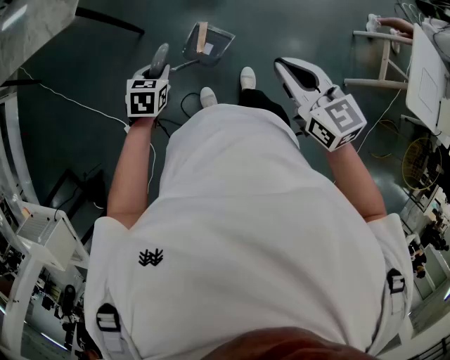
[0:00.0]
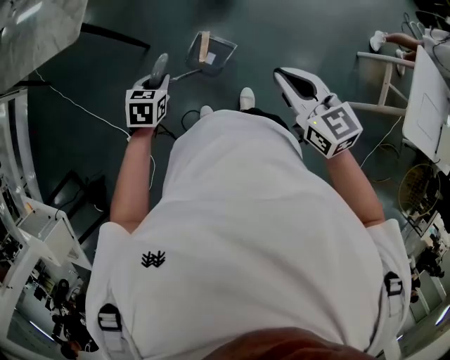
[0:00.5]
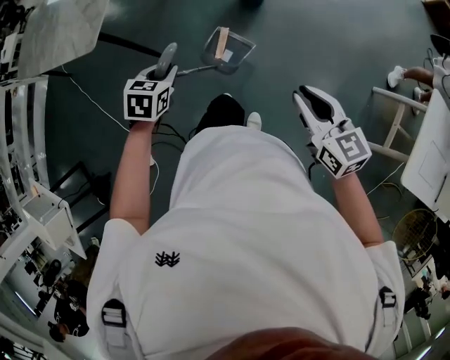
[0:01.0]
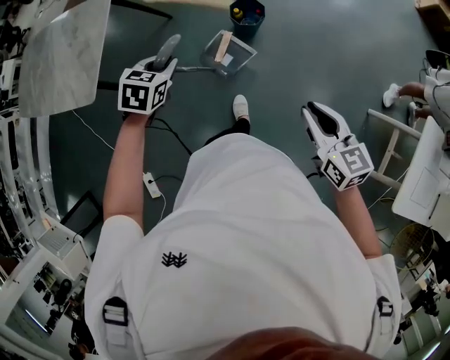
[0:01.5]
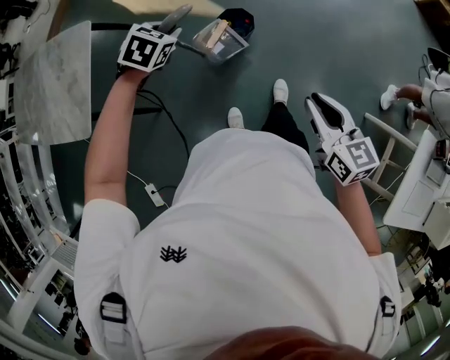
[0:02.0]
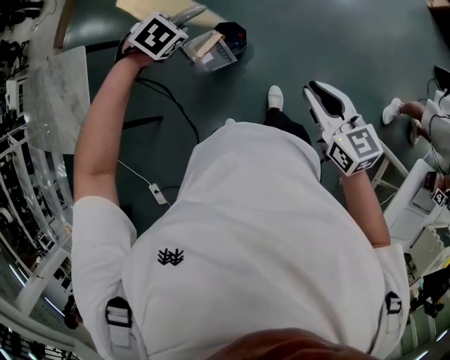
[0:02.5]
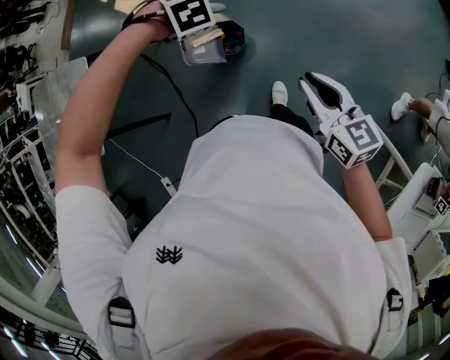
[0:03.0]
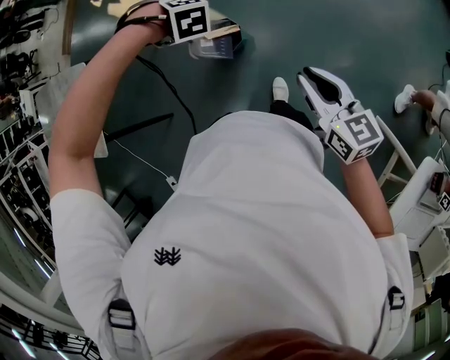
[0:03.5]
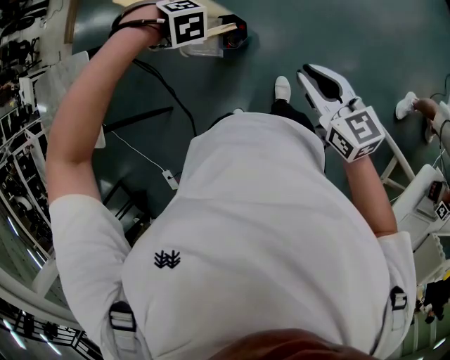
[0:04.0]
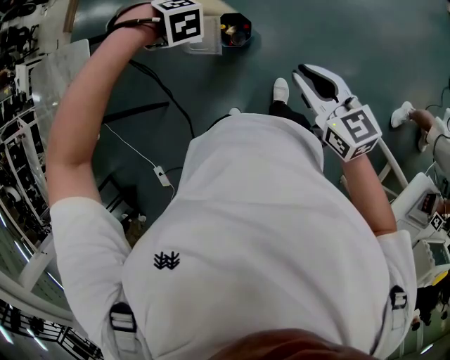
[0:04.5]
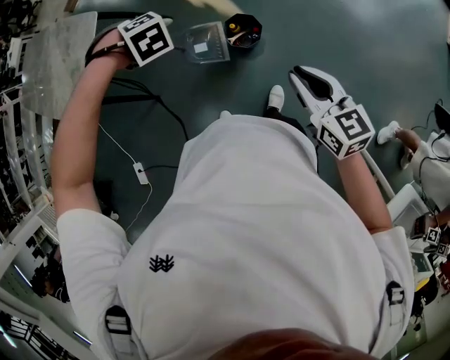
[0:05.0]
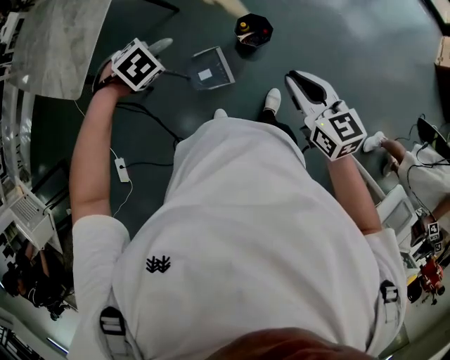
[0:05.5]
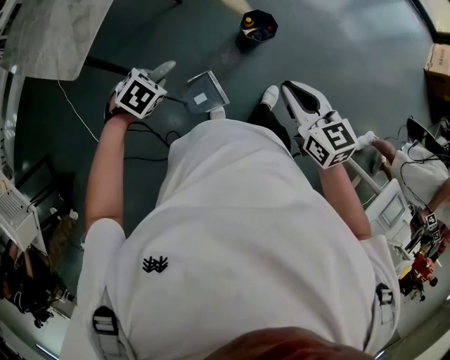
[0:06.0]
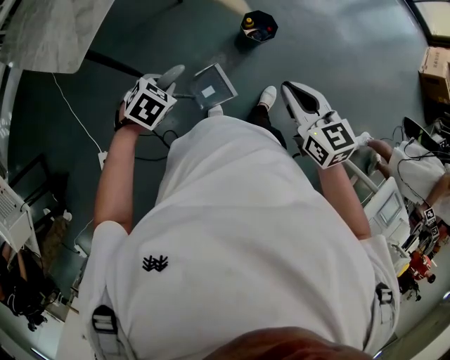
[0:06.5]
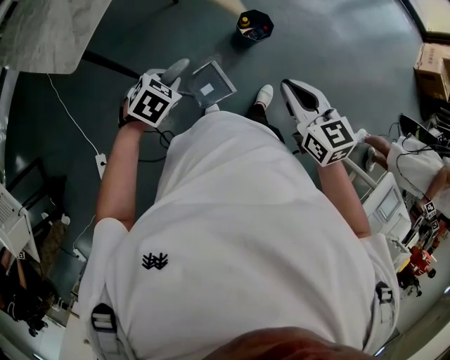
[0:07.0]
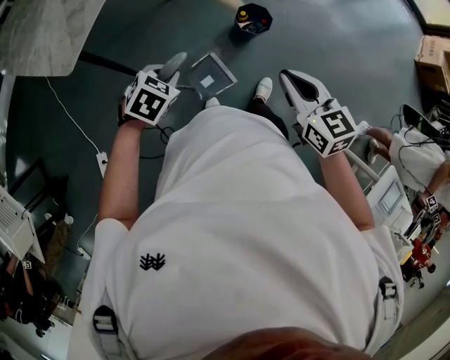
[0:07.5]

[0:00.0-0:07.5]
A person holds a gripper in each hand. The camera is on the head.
0:00.0 to 0:02.0: The right gripper changes place by approximately 50 cm.
0:02.0 to 0:04.0: The right gripper ends up roughly 25 cm from where it was.
0:04.0 to 0:05.5: The right gripper ends up about 25 cm from where it was.
0:05.5 to 0:07.5: The right gripper shifts by approximately 15 cm.

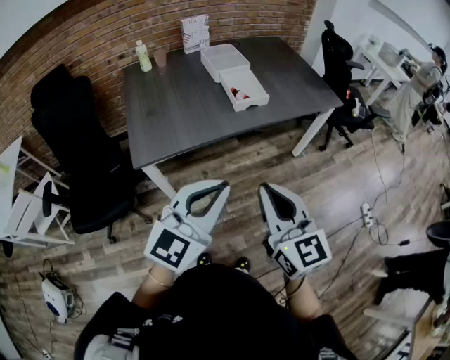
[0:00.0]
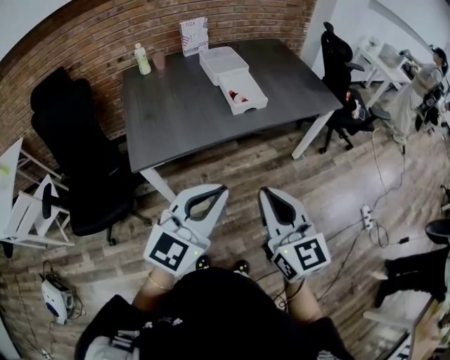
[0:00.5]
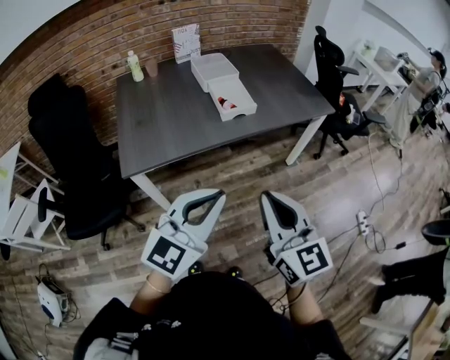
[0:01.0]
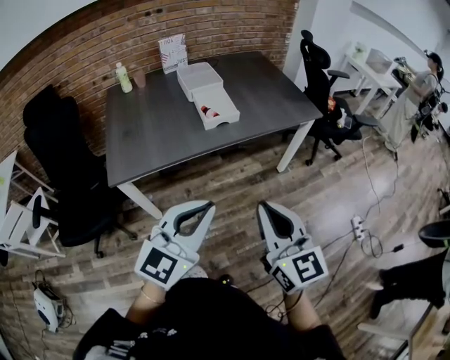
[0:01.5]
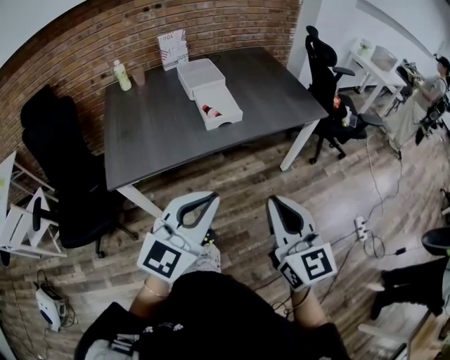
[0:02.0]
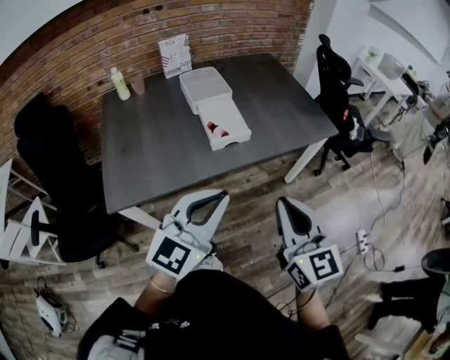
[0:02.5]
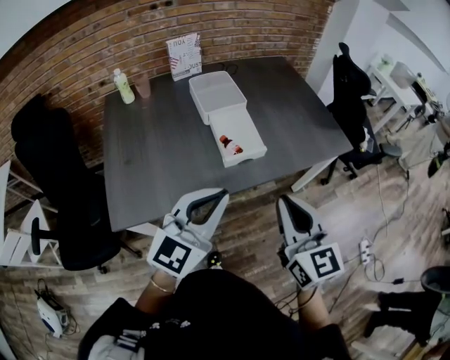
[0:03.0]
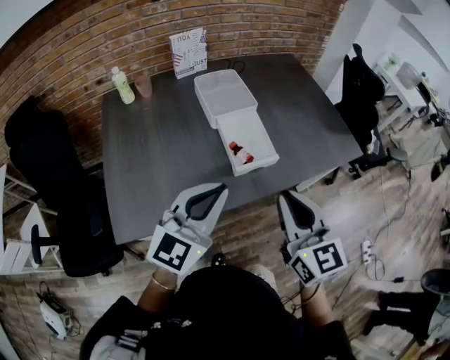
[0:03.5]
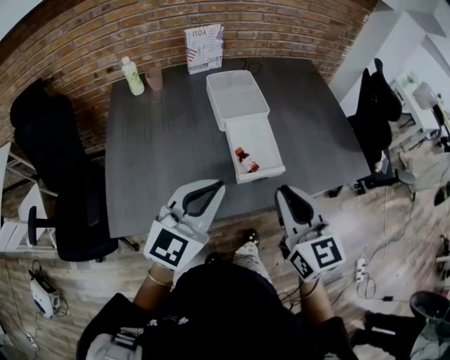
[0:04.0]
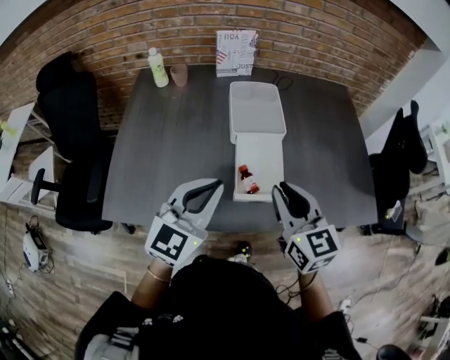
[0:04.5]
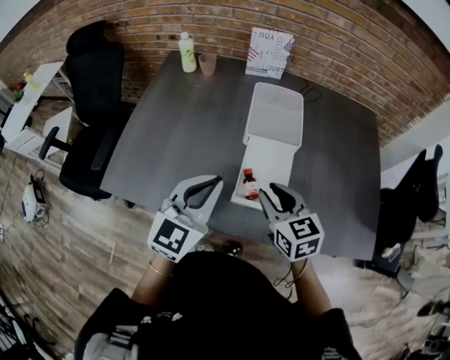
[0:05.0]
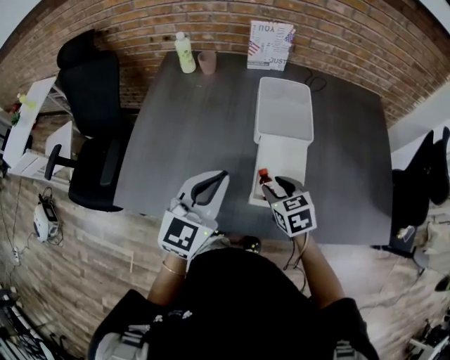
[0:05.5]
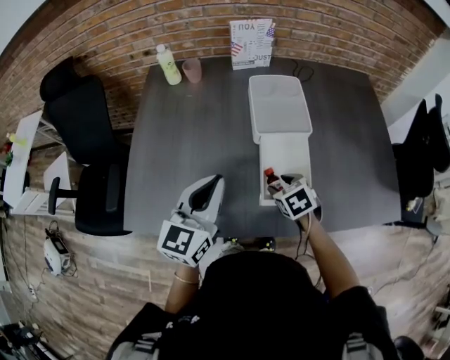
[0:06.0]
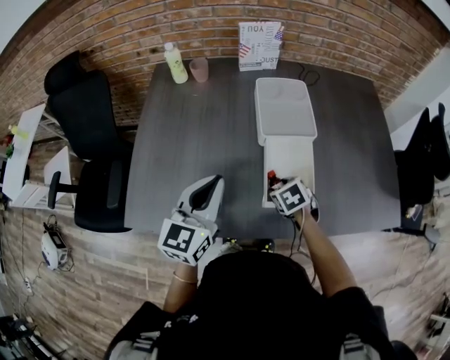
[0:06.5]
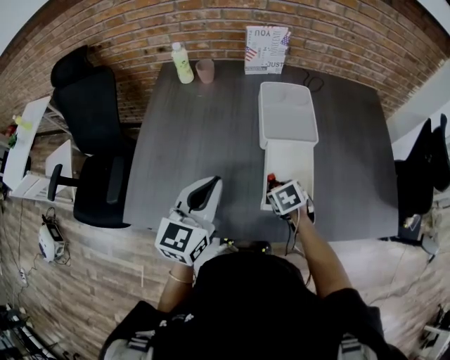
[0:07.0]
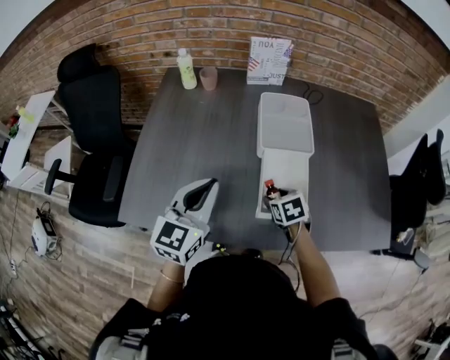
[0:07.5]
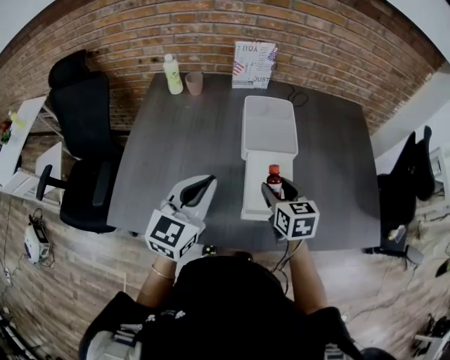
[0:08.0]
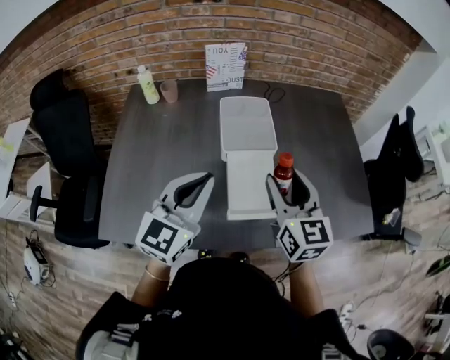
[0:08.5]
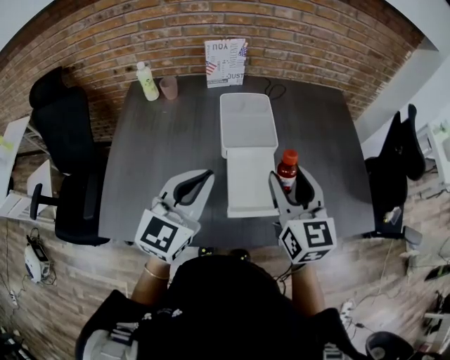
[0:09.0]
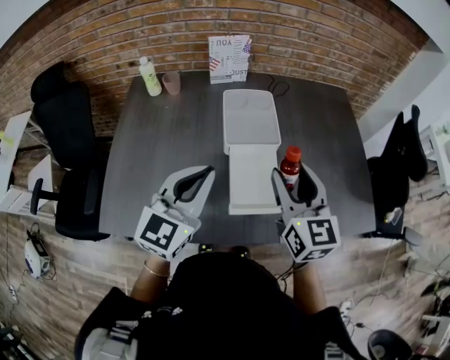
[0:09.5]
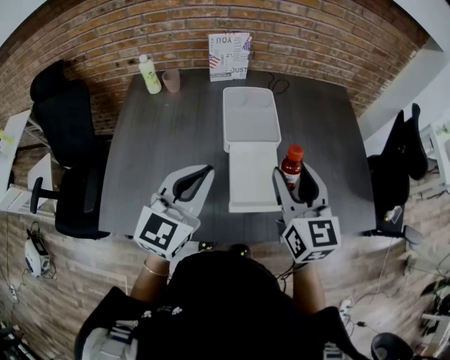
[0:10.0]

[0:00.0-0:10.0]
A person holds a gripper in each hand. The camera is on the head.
0:00.0 to 0:02.0: Both grippers move to the right and forward, approximately 15 cm.
0:02.0 to 0:04.0: The left gripper is displaced forward and to the left by some 35 cm, while the right gripper moves forward, some 35 cm.
0:04.0 to 0:06.0: The left gripper changes place by about 15 cm, and turns by approximately 30 degrees. The right gripper is displaced downward by approximately 25 cm, angles its fingers downward, by roughly 50 degrees, and opens its fingers.
0:06.0 to 0:08.0: The right gripper travels upward by some 10 cm, and swivels some 30 degrees.
0:08.0 to 0:10.0: The right gripper shifts some 15 cm upward, and turns by some 30 degrees. Meanwhile the left gripper changes place by about 5 cm.

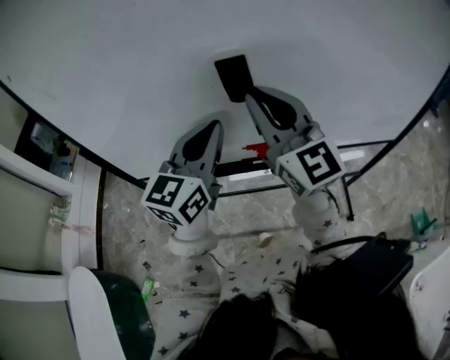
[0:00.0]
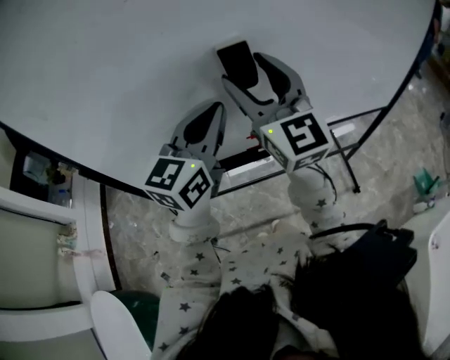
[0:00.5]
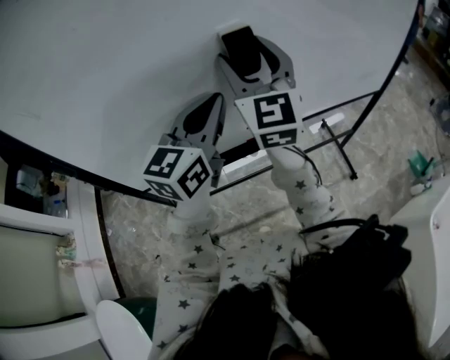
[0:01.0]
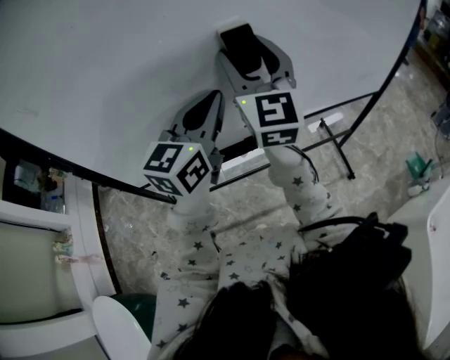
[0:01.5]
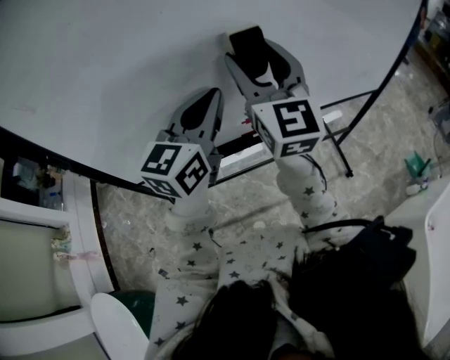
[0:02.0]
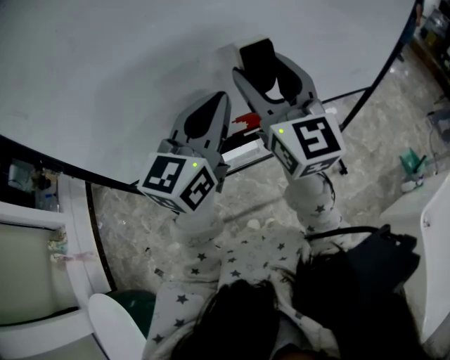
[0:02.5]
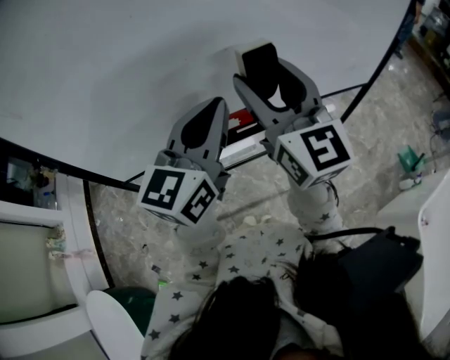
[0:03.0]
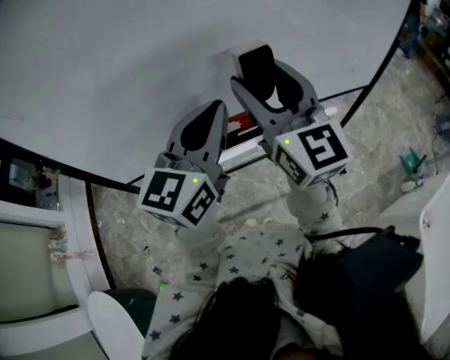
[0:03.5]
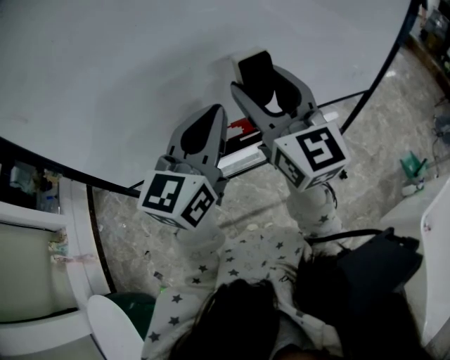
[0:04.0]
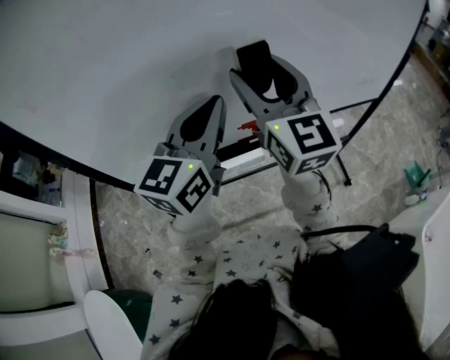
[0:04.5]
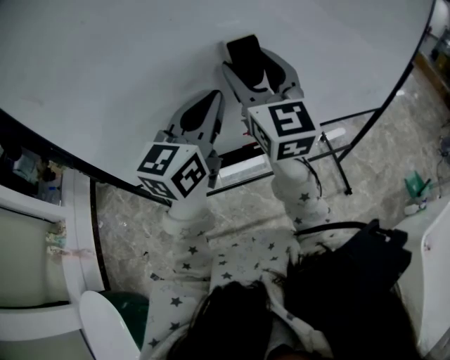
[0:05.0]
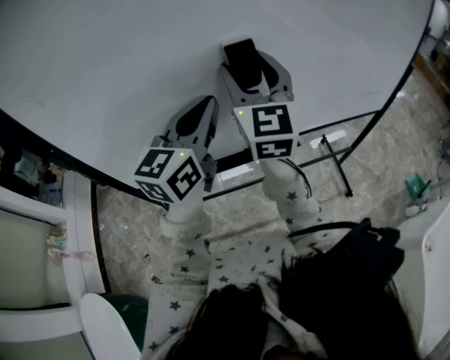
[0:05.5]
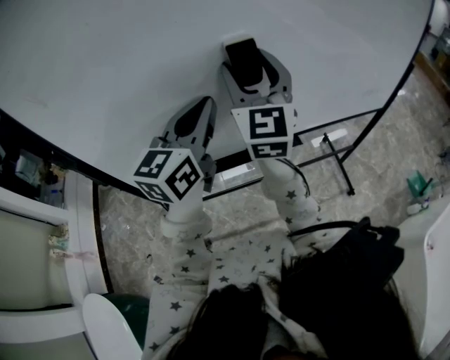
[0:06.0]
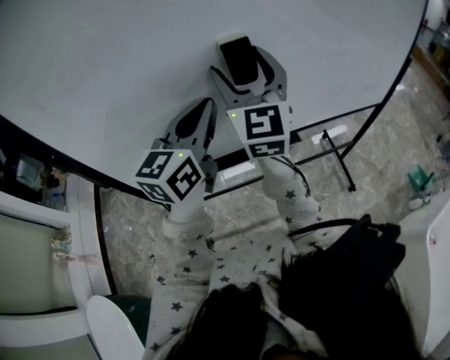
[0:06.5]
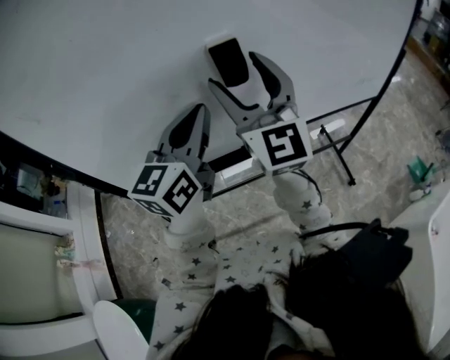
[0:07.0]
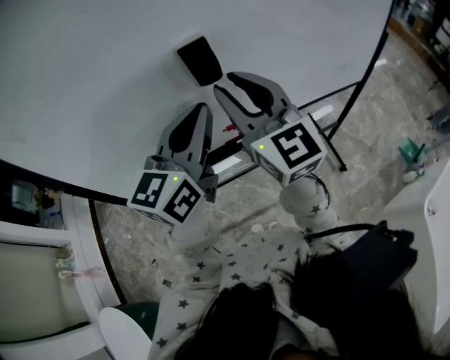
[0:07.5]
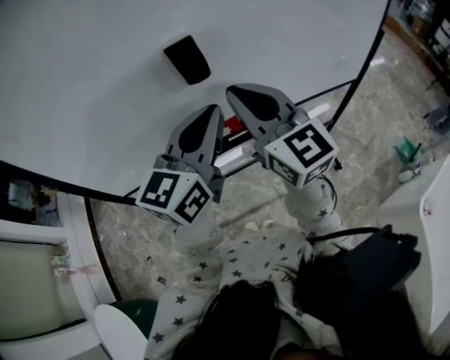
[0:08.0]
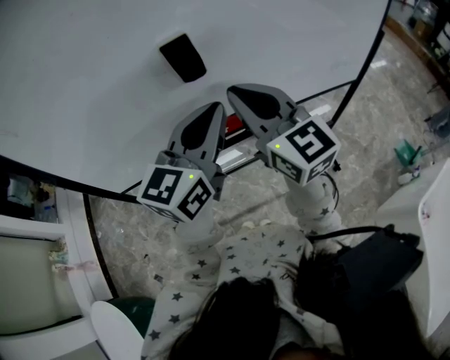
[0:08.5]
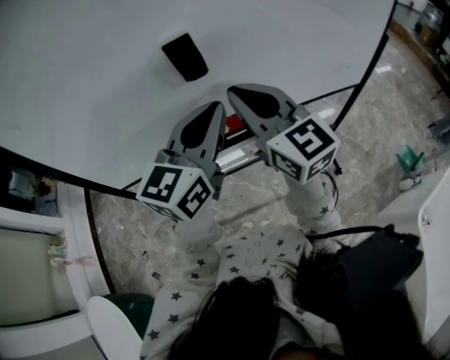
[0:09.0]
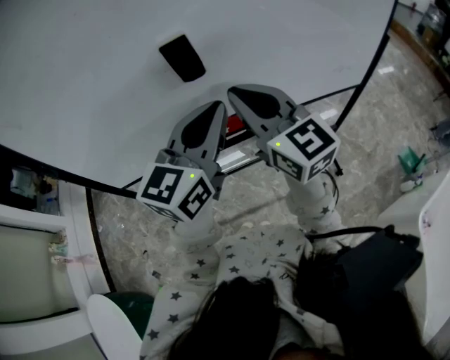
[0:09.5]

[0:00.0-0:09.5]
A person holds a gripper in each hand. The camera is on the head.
0:00.0 to 0:02.0: The right gripper swivels some 20 degrees, and opens up.
0:02.0 to 0:04.0: The grippers both shift to the right and backward by some 10 cm.
0:04.0 to 0:05.5: The left gripper heads to the left, covering roughly 5 cm. The right gripper travels forward and to the left by roughly 10 cm.
0:05.5 to 0:07.5: The right gripper closes its fingers.
0:07.5 to 0:09.5: Both grippers travel together to the right and backward, about 10 cm.
